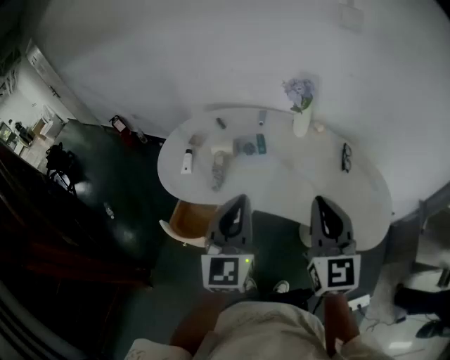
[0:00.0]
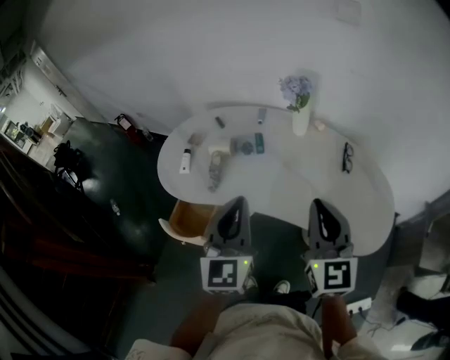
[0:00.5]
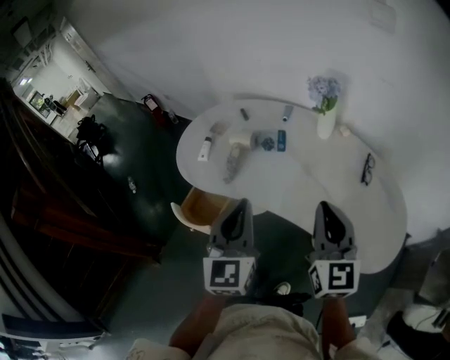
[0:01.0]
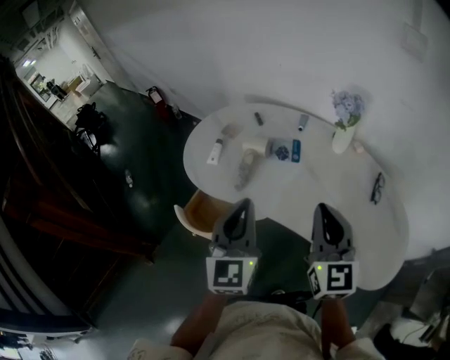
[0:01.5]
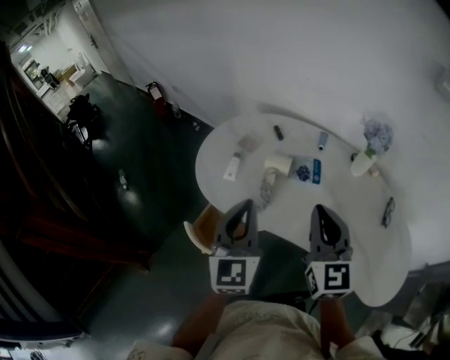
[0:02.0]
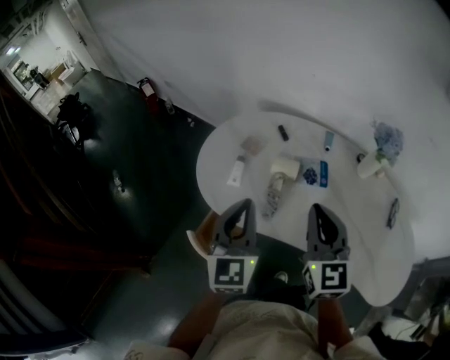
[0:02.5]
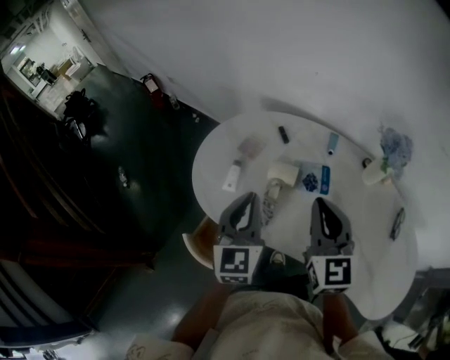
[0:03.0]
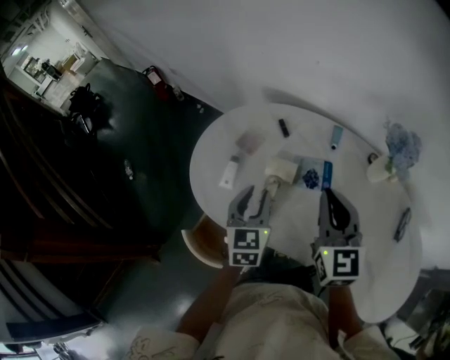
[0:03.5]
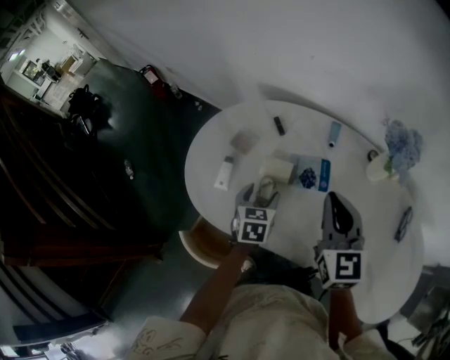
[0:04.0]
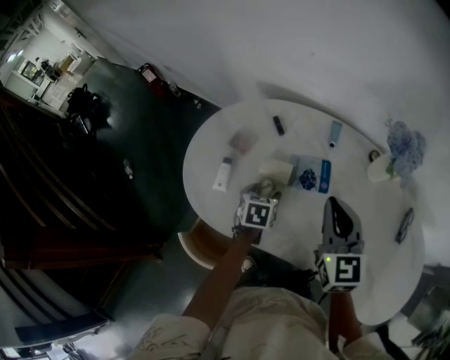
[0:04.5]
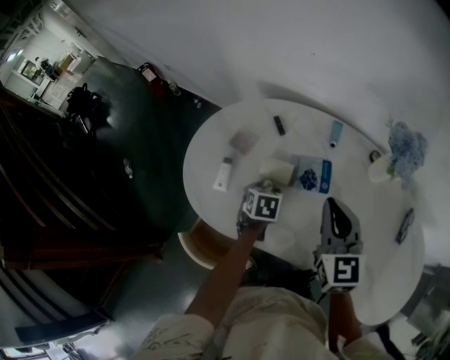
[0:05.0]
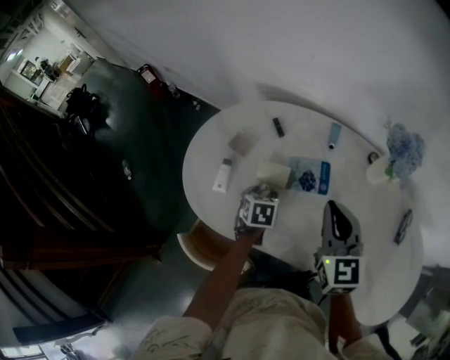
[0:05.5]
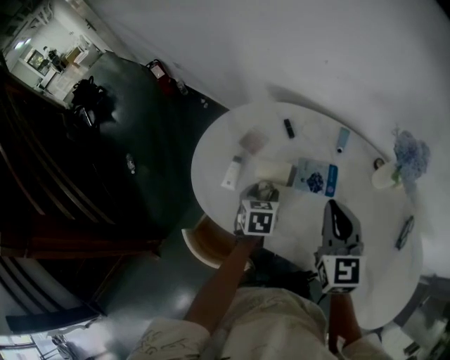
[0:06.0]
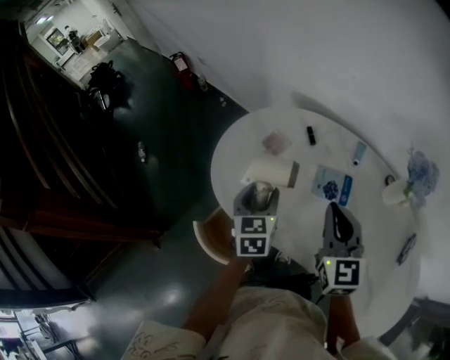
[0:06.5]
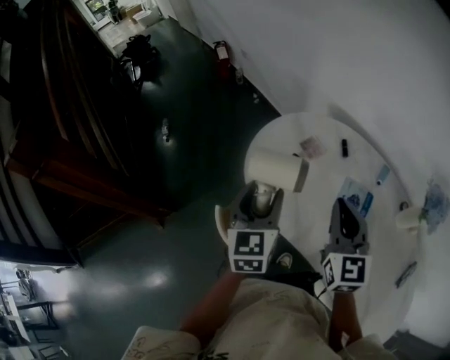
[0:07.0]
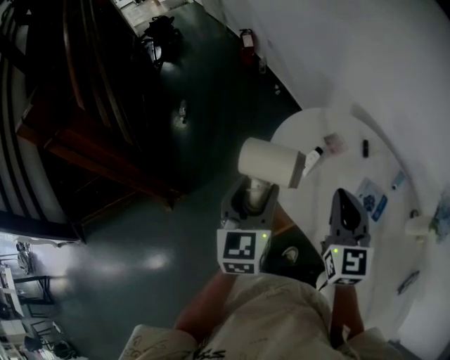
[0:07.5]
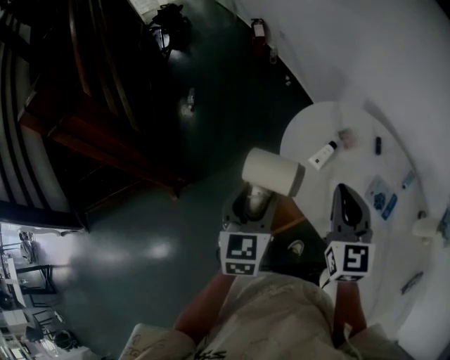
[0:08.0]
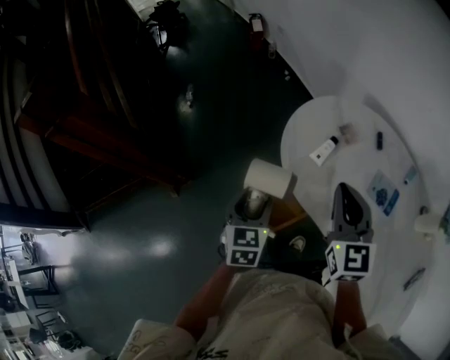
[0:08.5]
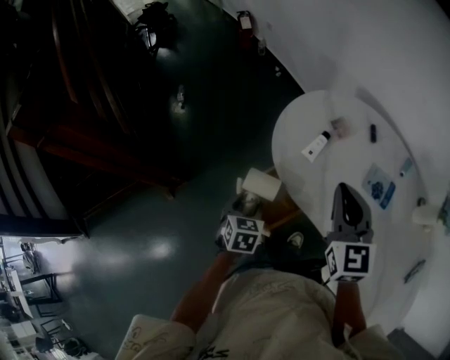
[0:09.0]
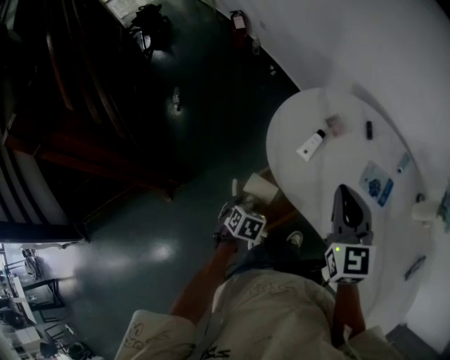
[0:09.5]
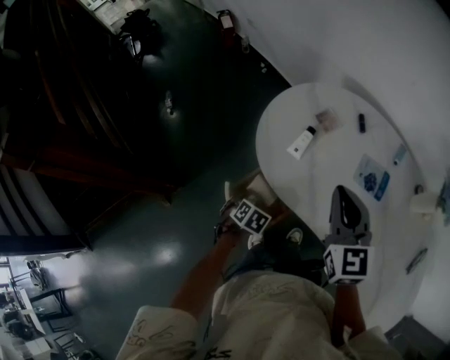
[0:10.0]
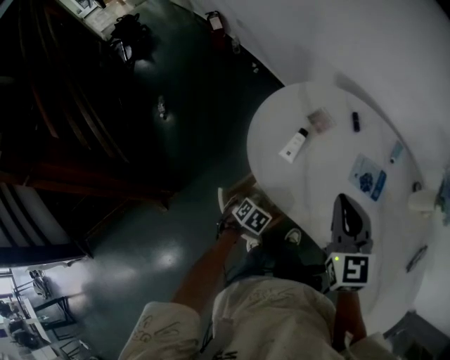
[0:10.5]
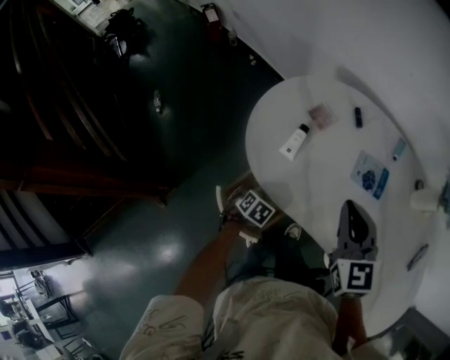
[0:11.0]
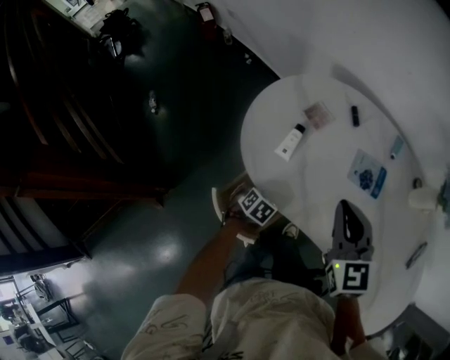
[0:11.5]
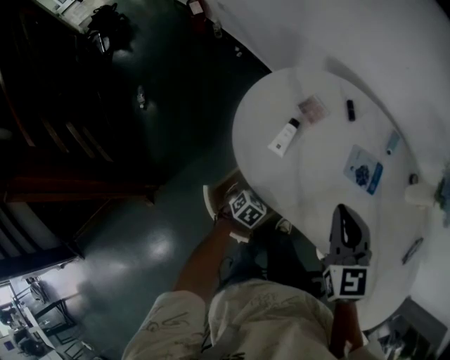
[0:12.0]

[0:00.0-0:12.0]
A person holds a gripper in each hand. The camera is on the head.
0:00.0 to 0:02.0: The left gripper travels to the left and forward by roughly 20 cm; the right gripper is displaced forward and to the left by about 20 cm.
0:02.0 to 0:04.0: The right gripper heads forward, to the right and downward, covering roughly 20 cm; the left gripper heads downward and forward, covering about 30 cm, points its fingers approximately 40 degrees further downward, and opens.
0:06.0 to 0:08.0: The left gripper moves roughly 35 cm, and changes its angle by some 40 degrees; the right gripper changes place by some 25 cm, and rotates roughly 30 degrees.
0:08.0 to 0:10.0: The right gripper moves roughly 5 cm. Meanwhile the left gripper shifts about 30 cm downward, and tips its fingers downward by approximately 50 degrees.
0:10.0 to 0:12.0: The right gripper ends up approximately 5 cm from where it was. The left gripper changes place by approximately 15 cm, and rotates about 20 degrees.

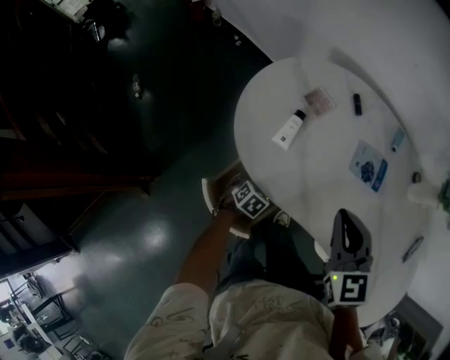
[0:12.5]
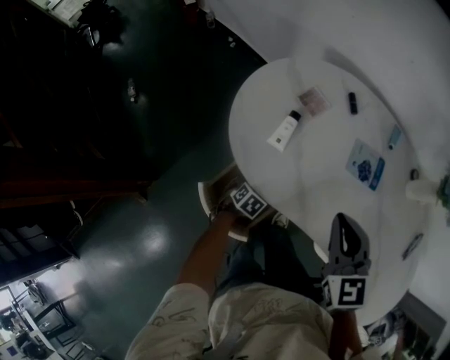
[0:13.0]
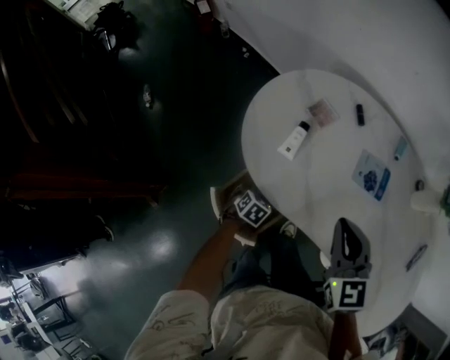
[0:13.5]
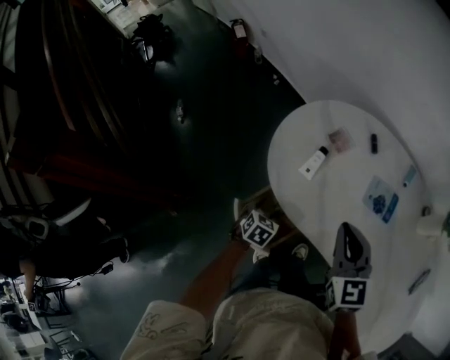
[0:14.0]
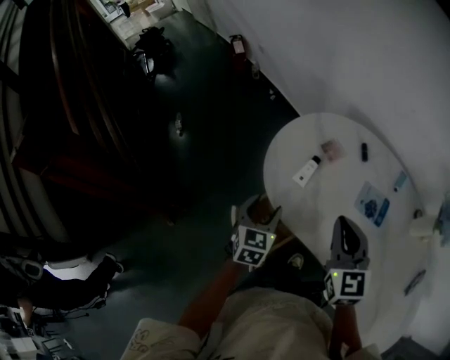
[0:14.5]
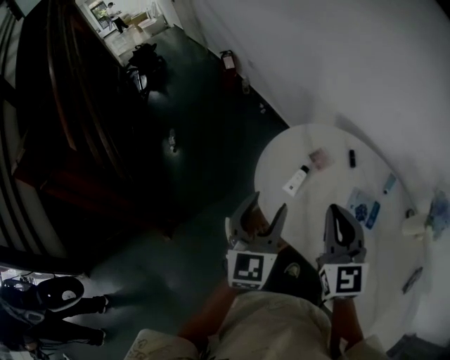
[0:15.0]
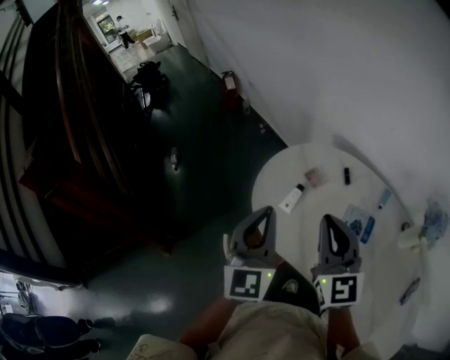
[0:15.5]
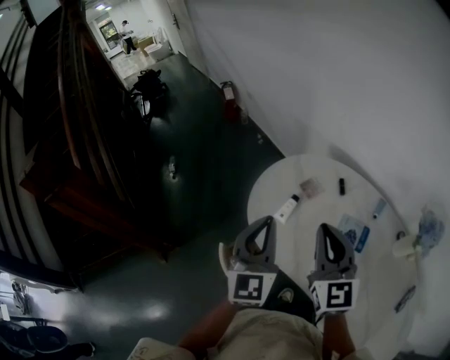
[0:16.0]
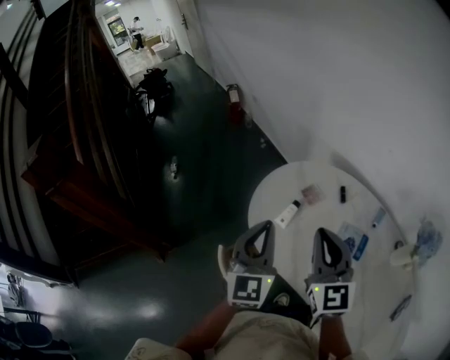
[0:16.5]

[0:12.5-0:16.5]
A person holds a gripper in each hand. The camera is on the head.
0:12.5 to 0:14.5: The left gripper moves upward, roughly 25 cm, and tilts its fingers roughly 30 degrees upward; the right gripper shifts by approximately 5 cm.
0:14.5 to 0:16.5: The right gripper shifts roughly 10 cm upward. The left gripper travels upward by some 20 cm, rotates some 30 degrees, and closes up.

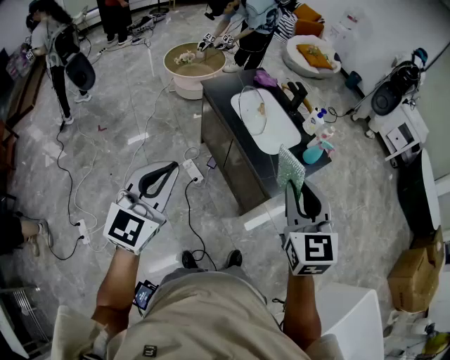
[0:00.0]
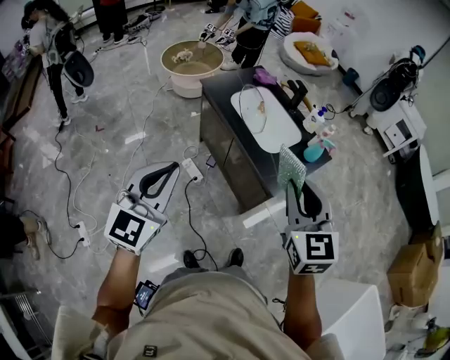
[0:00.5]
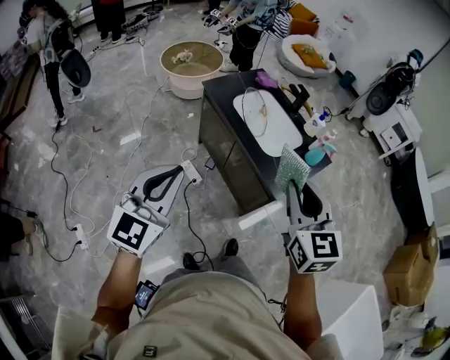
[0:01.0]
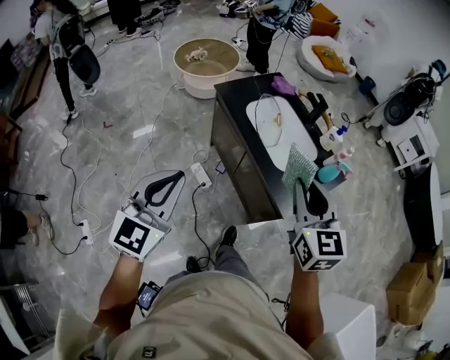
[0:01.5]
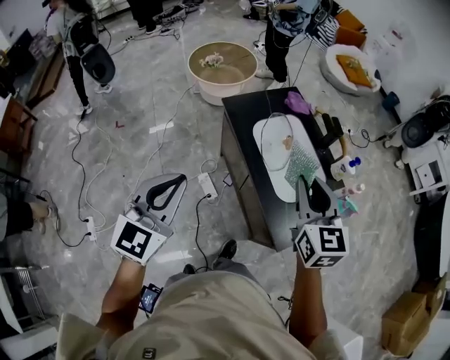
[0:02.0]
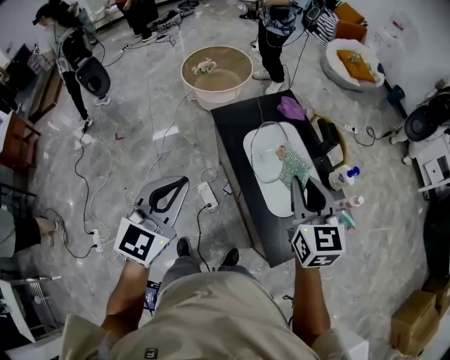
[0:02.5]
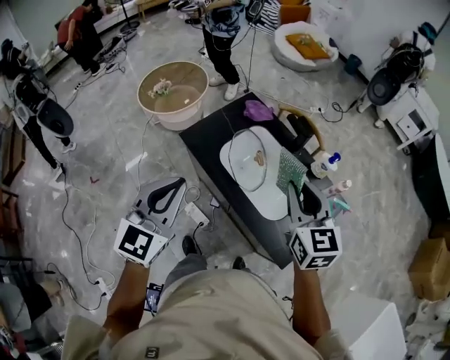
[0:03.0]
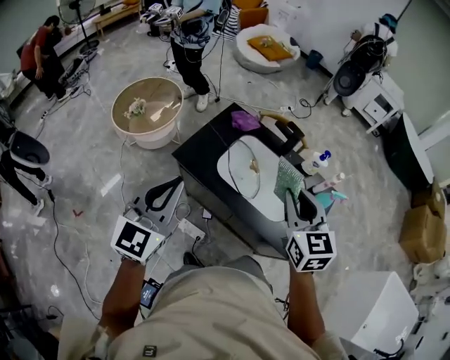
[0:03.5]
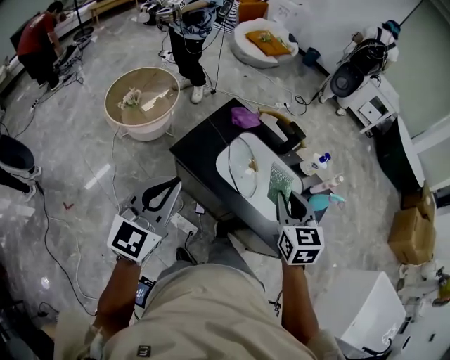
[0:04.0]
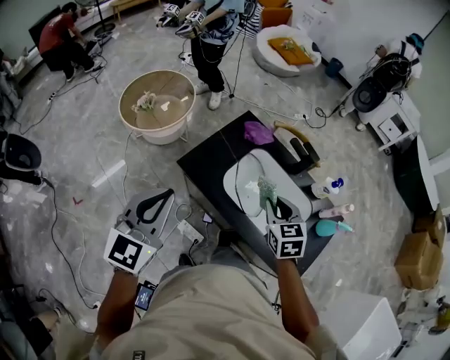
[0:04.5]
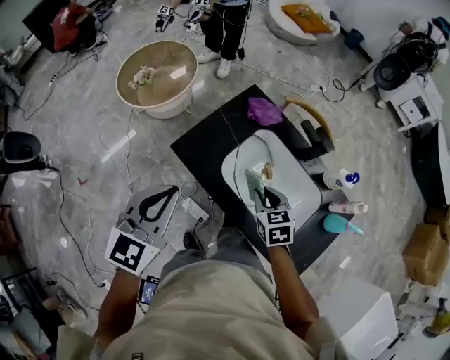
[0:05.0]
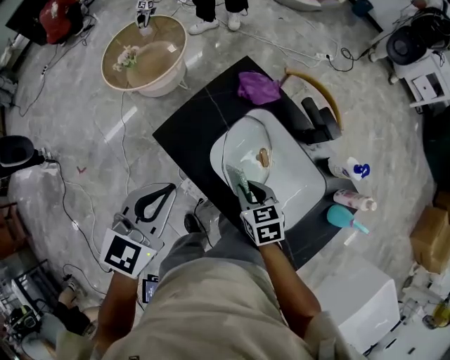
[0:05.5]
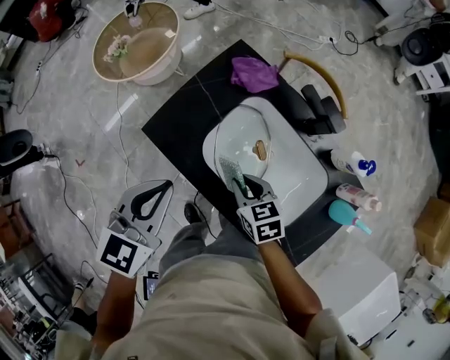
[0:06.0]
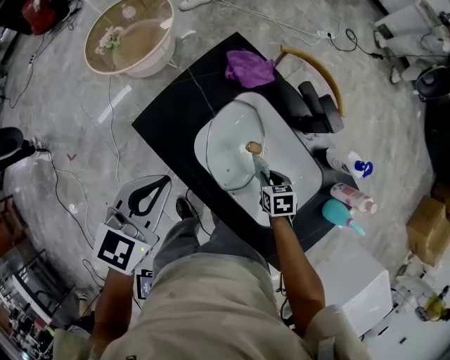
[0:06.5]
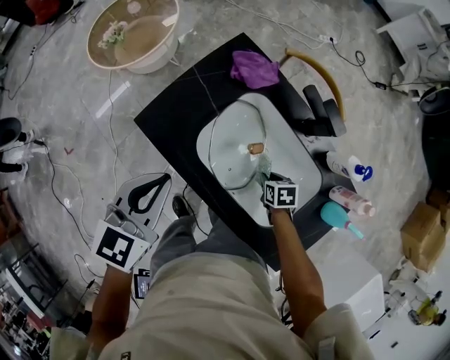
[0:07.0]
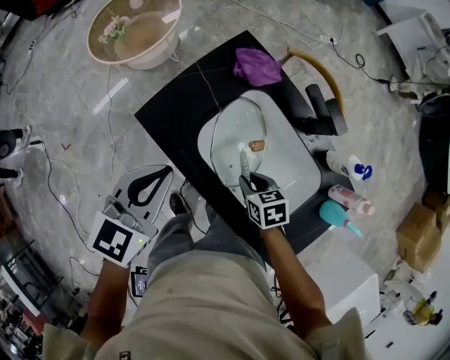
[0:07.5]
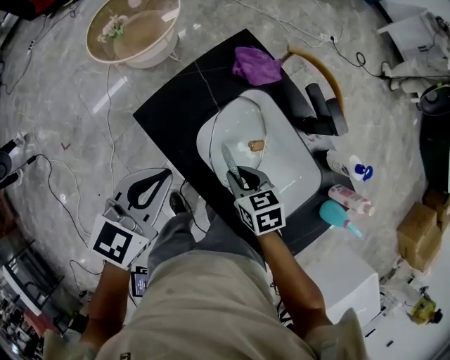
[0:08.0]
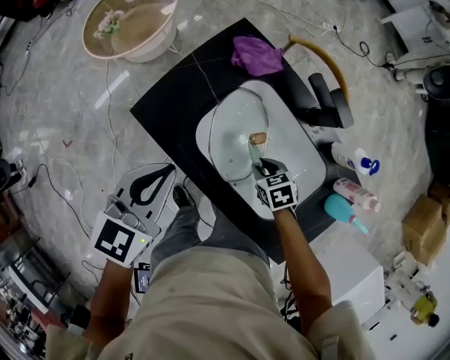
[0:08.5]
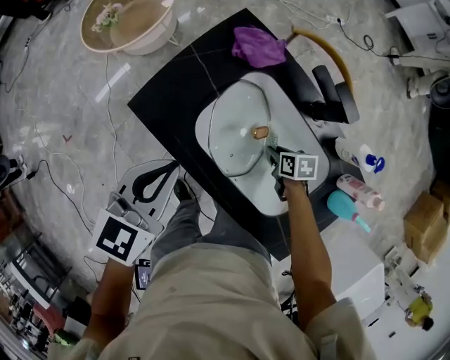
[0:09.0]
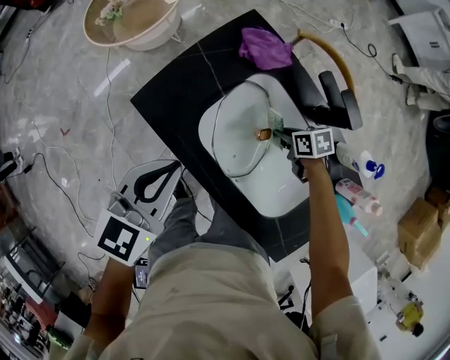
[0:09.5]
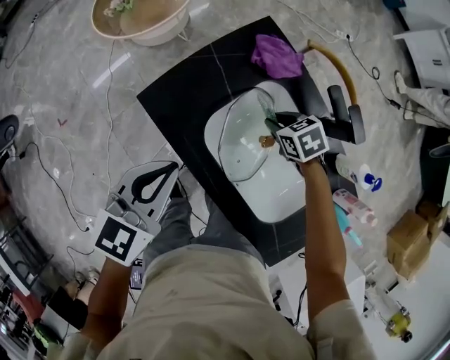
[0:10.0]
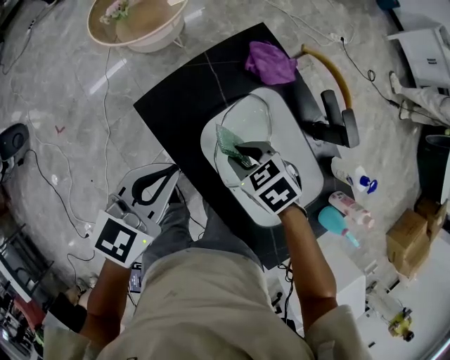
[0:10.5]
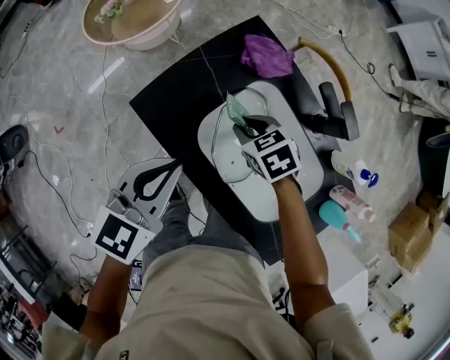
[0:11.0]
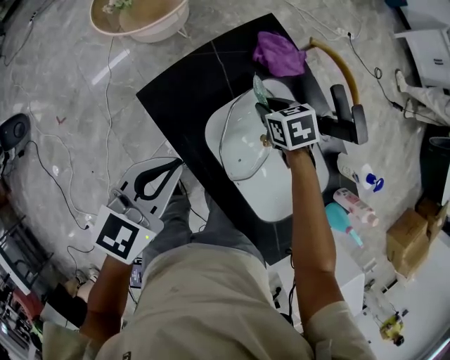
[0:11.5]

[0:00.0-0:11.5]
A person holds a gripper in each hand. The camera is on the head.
0:00.0 to 0:02.0: Both grippers travel together forward, some 25 cm.
0:02.0 to 0:04.0: The left gripper moves roughly 30 cm, and changes its angle by roughly 30 degrees. The right gripper ends up about 15 cm from where it was, and turns by about 30 degrees.
0:04.0 to 0:06.0: The left gripper shifts about 25 cm downward, forward and to the right, and rotates some 30 degrees. The right gripper travels downward and forward by about 30 cm, and changes its angle by about 40 degrees.
0:06.0 to 0:07.5: The right gripper shifts some 5 cm downward.
0:07.5 to 0:09.5: The right gripper travels to the right, forward and downward by some 15 cm.
0:09.5 to 0:11.5: The right gripper moves forward, to the left and upward, about 15 cm, and swivels some 20 degrees.
